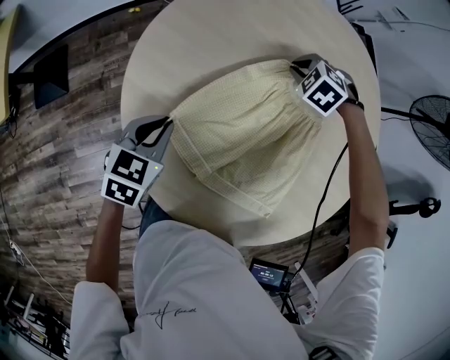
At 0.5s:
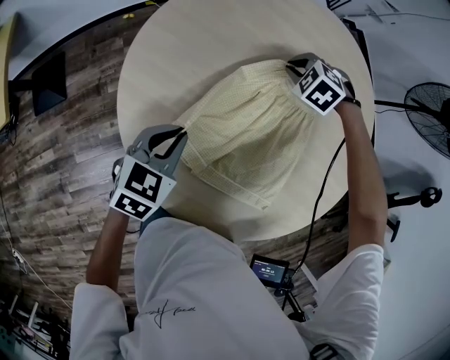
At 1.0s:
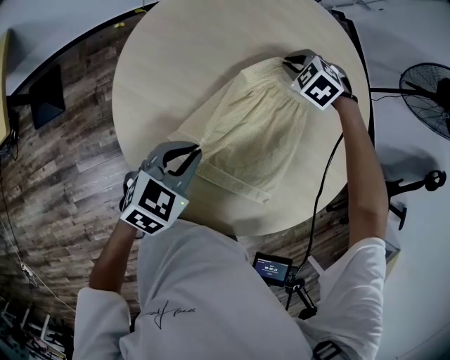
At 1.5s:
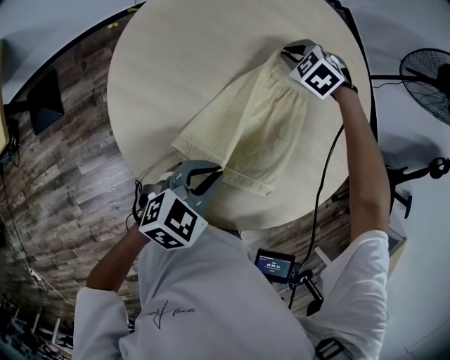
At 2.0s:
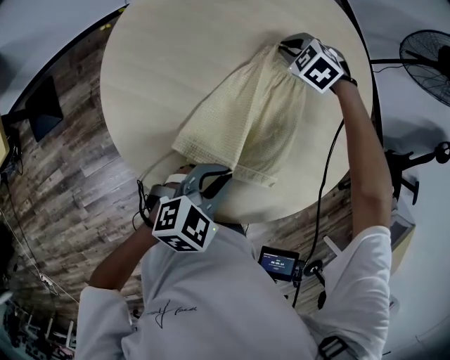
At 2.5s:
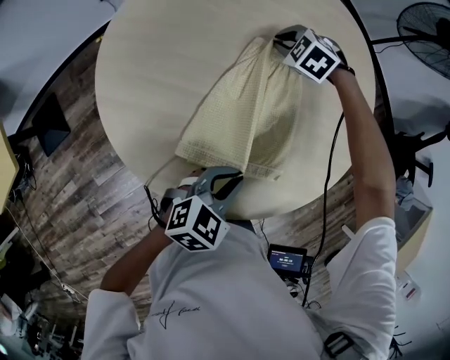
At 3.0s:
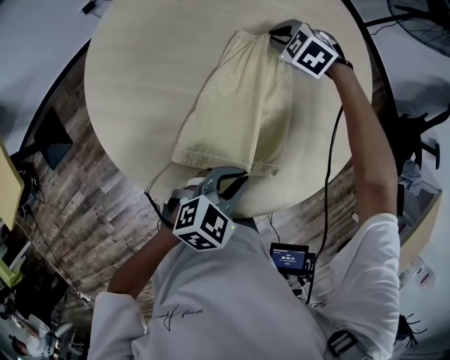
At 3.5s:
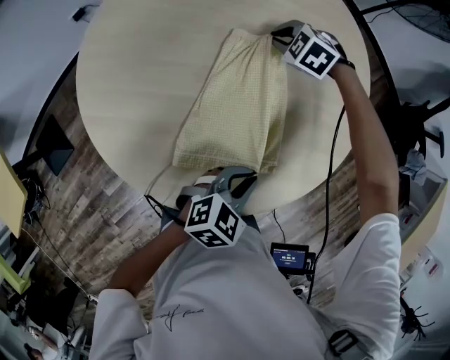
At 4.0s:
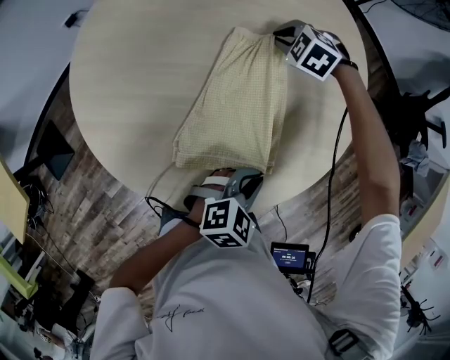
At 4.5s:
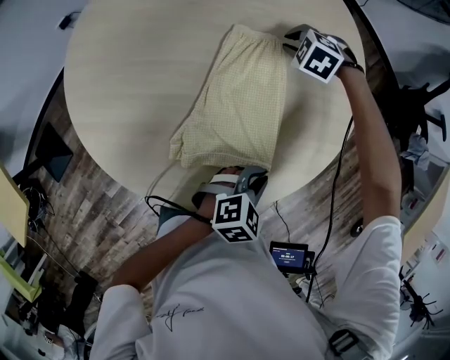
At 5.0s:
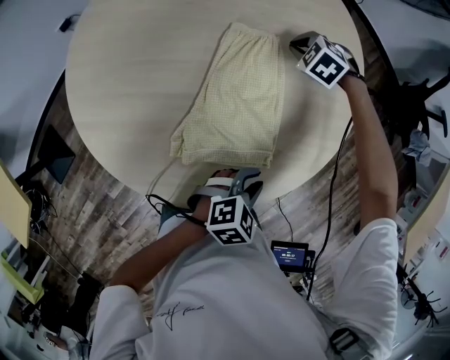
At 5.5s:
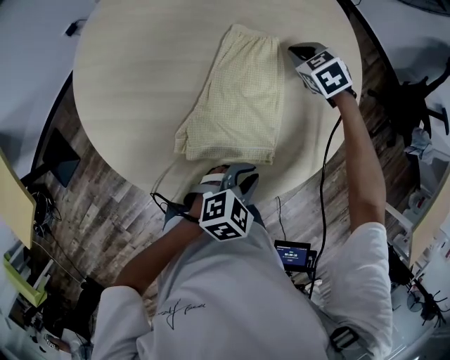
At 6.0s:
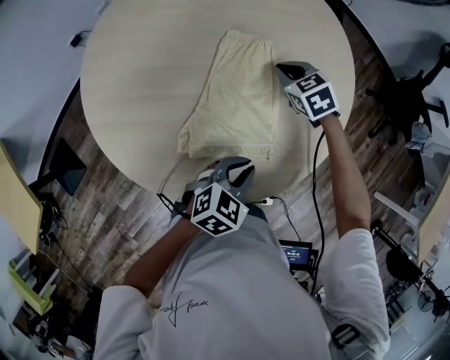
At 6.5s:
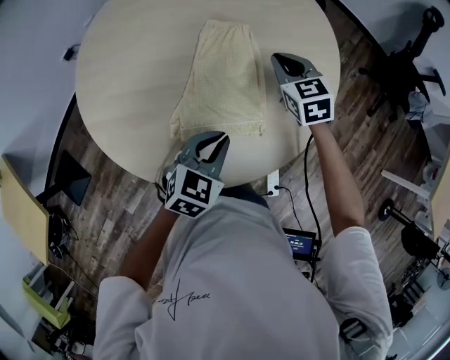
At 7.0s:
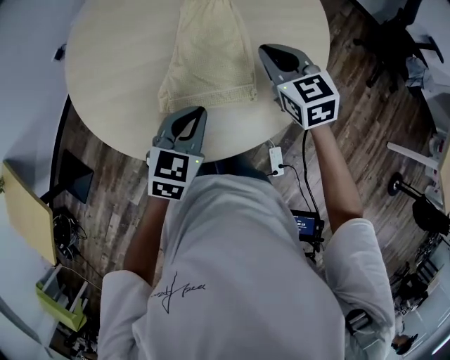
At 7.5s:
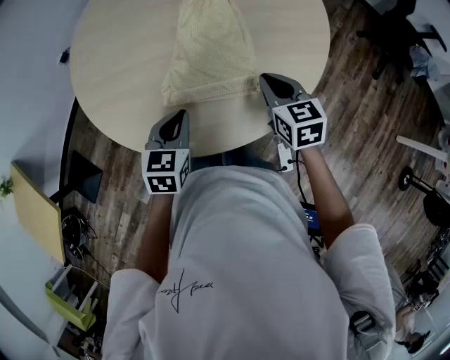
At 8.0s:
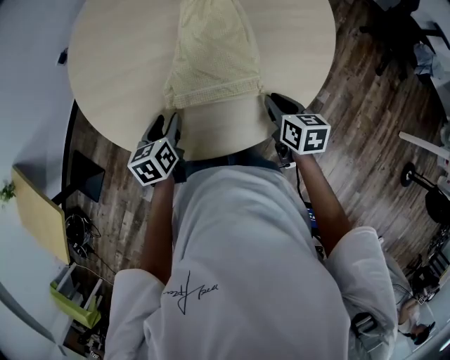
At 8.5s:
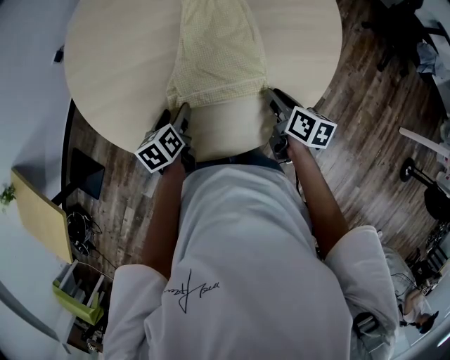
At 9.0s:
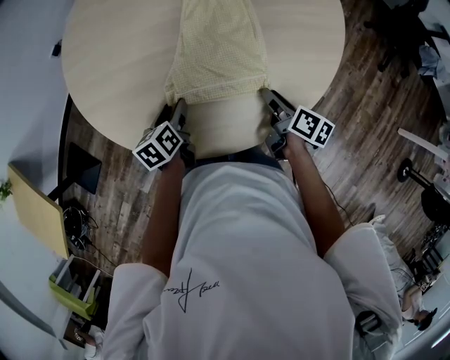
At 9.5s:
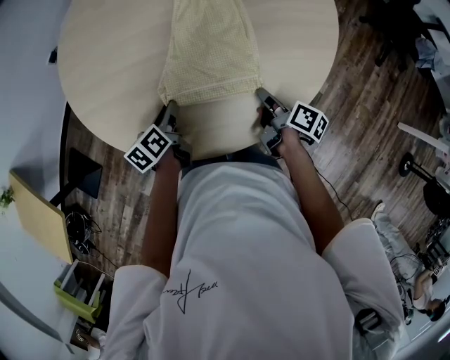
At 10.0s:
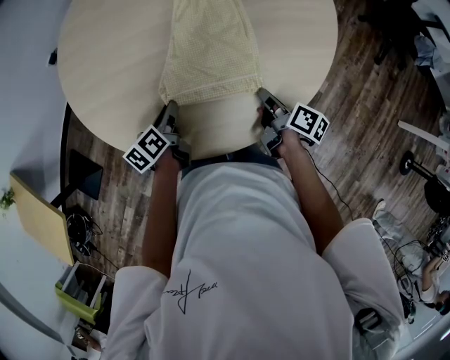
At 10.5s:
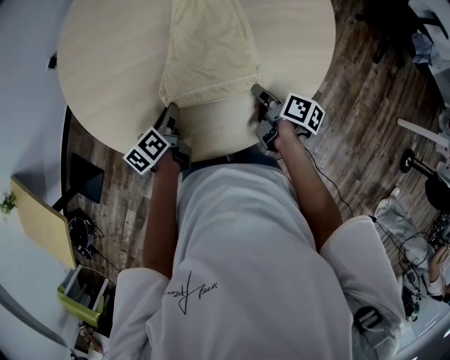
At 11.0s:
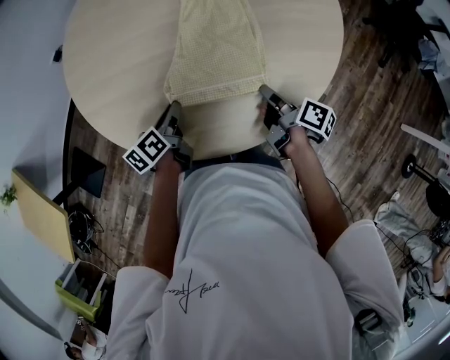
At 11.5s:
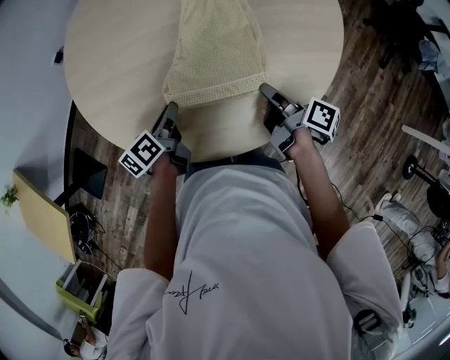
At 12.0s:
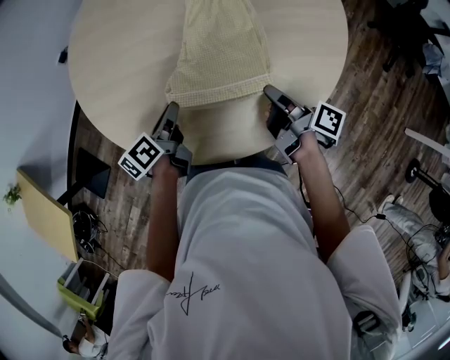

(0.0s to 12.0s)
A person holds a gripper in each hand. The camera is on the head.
0.0s - 2.0s: The left gripper shifts some 25 cm to the right and backward, and changes its angle by some 40 degrees; the right gripper travels to the right by about 10 cm.
2.0s - 4.0s: The two grippers go some 15 cm to the right. The left gripper turns by roughly 20 degrees.
4.0s - 6.0s: The right gripper travels backward and to the right by roughly 10 cm, and swivels some 40 degrees.
6.0s - 8.0s: The right gripper travels backward by some 30 cm, and twists roughly 50 degrees clockwise, seen from behind. Meanwhile the left gripper shifts some 20 cm to the left, twists some 40 degrees counterclockwise, seen from behind, and opens.
8.0s - 10.0s: The right gripper twists roughly 40 degrees clockwise, seen from behind, and opens and closes again; the left gripper shifts by about 5 cm, and swivels approximately 30 degrees.
10.0s - 12.0s: Both grippers move upward, roughly 5 cm.

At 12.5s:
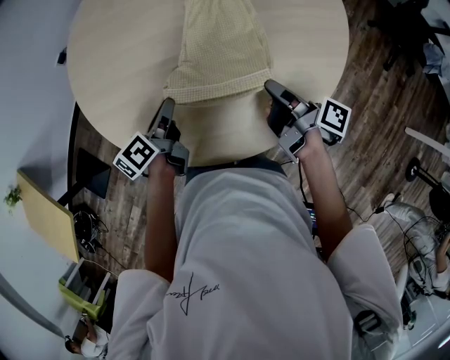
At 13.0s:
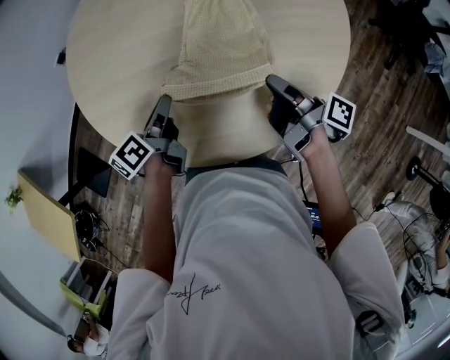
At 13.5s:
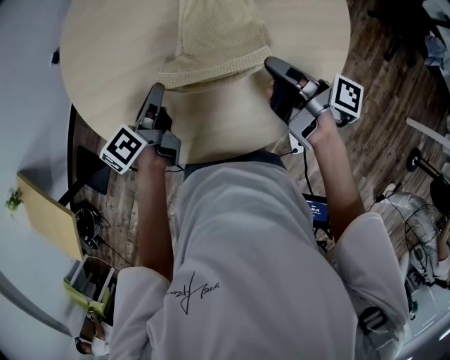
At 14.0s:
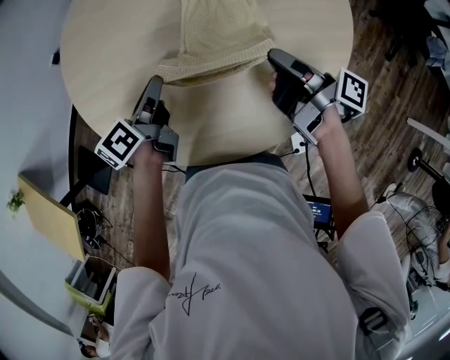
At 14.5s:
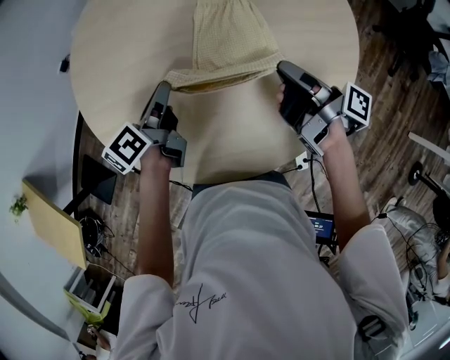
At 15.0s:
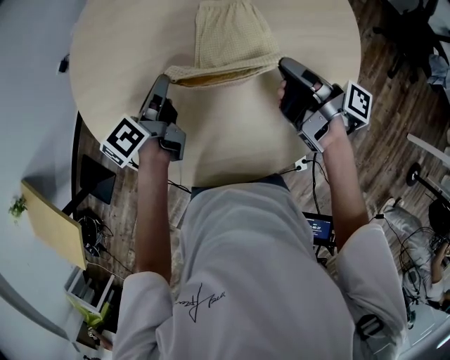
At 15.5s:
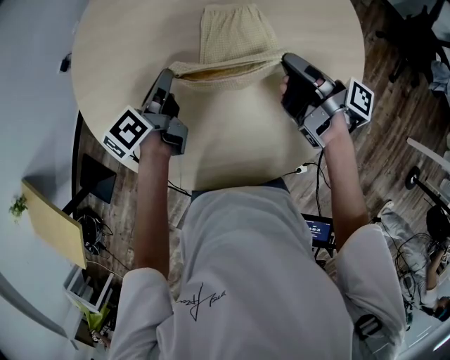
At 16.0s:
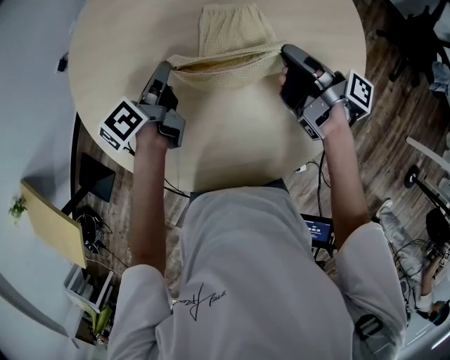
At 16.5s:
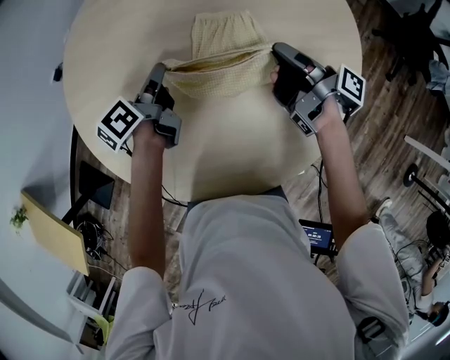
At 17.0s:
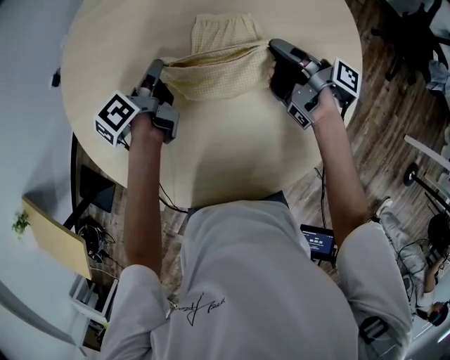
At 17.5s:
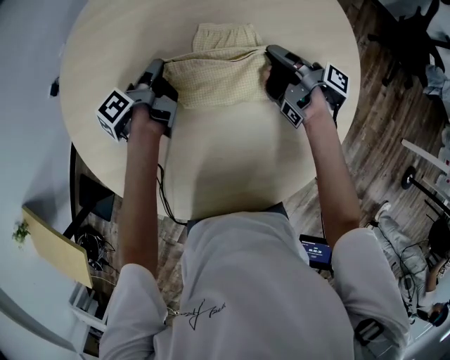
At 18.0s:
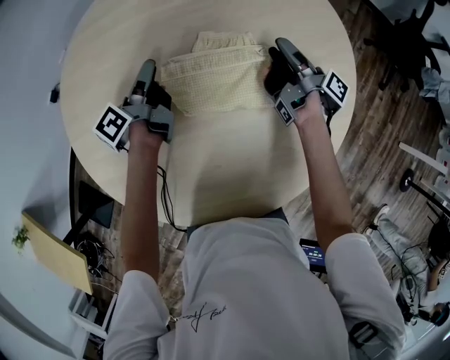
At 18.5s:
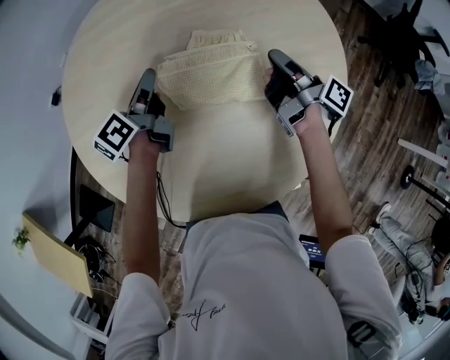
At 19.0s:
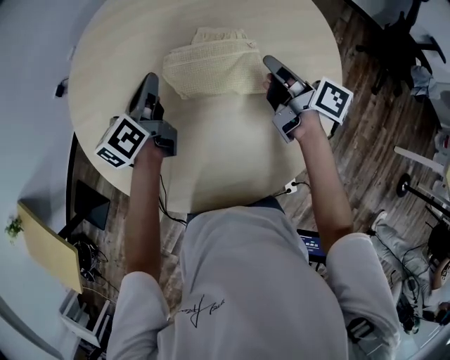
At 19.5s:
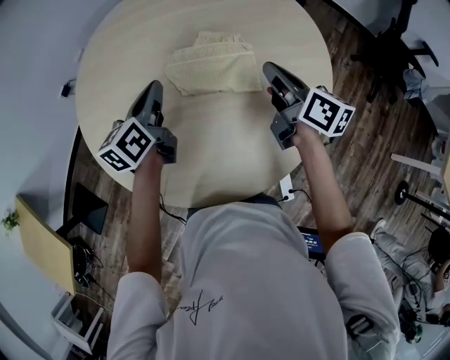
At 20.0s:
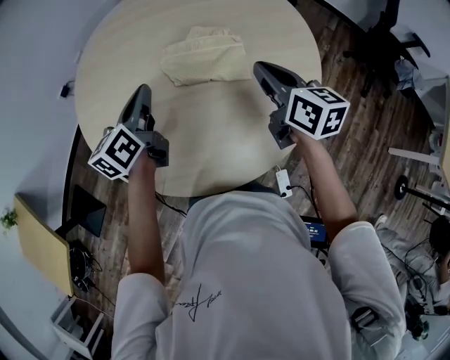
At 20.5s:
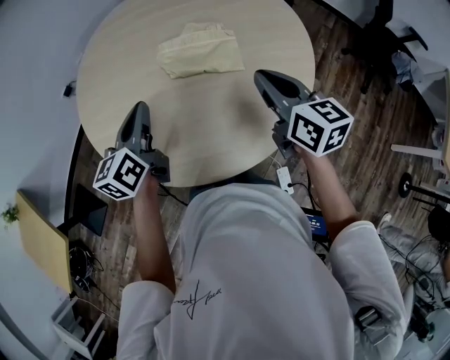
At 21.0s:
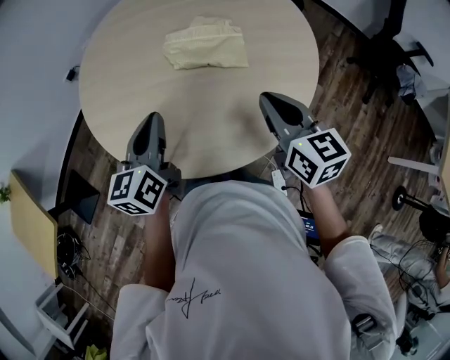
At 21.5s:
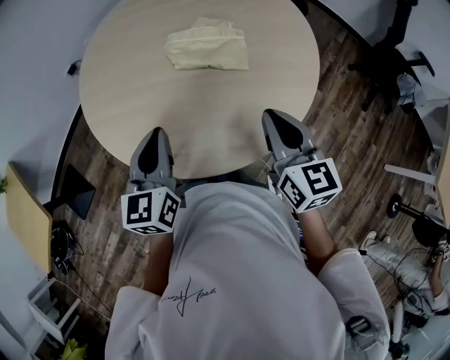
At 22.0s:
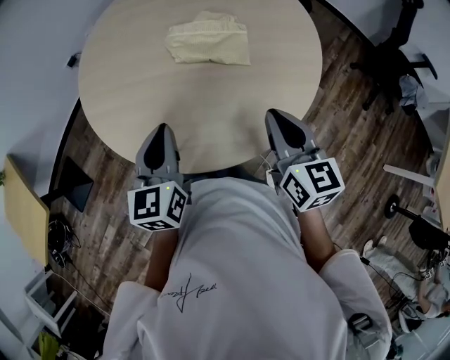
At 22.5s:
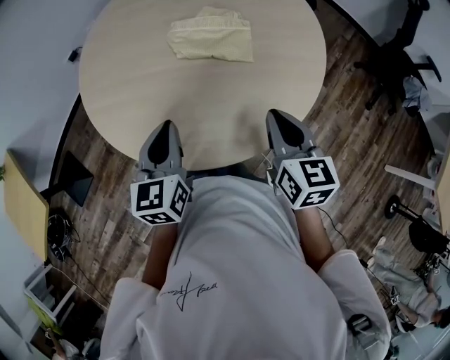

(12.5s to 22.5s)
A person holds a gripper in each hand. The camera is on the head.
12.5s - 14.5s: The two grippers go some 10 cm forward.
14.5s - 16.5s: Both grippers move forward, approximately 10 cm.
16.5s - 18.5s: The right gripper opens, then closes again; the left gripper shifts by some 5 cm.
18.5s - 20.5s: Both grippers travel together backward and upward, some 25 cm. The right gripper twists about 70 degrees counterclockwise, seen from behind. Meanwhile the left gripper rotates roughly 30 degrees.
20.5s - 22.5s: The right gripper shifts some 10 cm backward. Meanwhile the left gripper is displaced backward and to the right by about 10 cm.

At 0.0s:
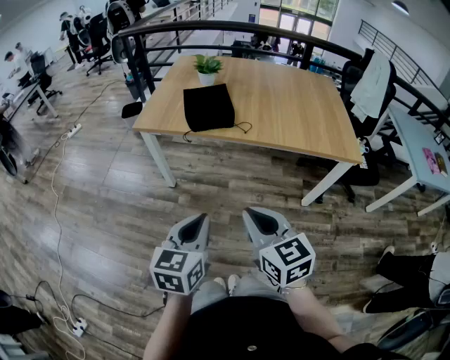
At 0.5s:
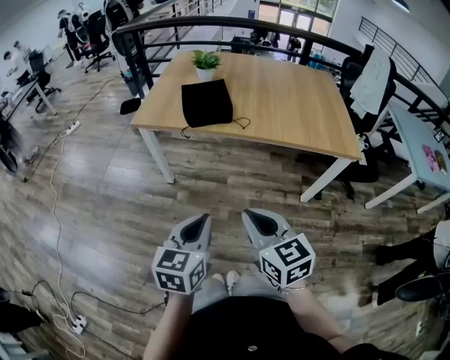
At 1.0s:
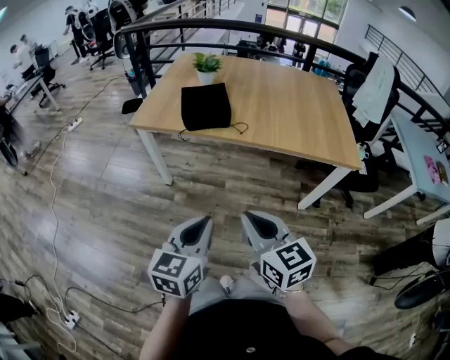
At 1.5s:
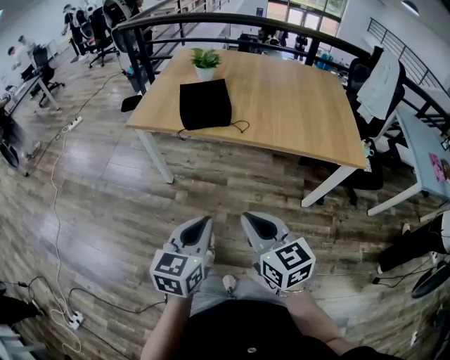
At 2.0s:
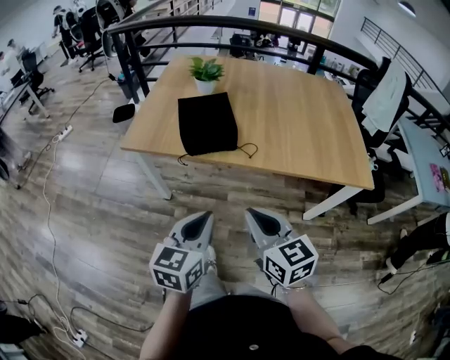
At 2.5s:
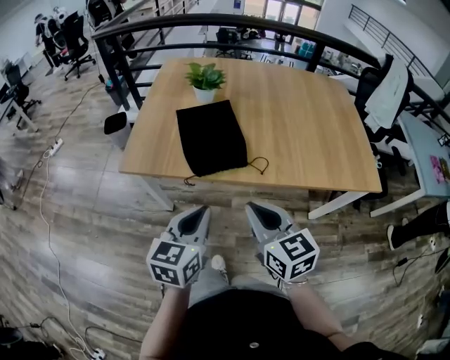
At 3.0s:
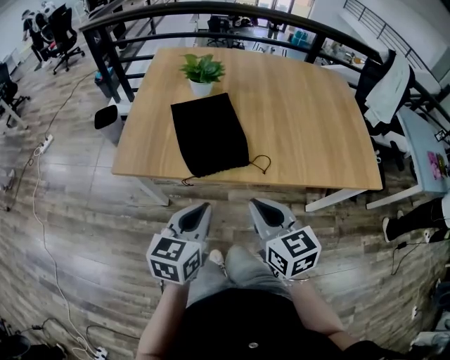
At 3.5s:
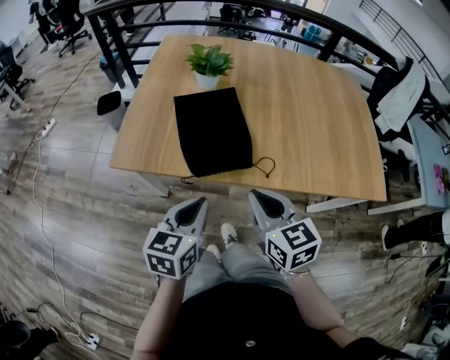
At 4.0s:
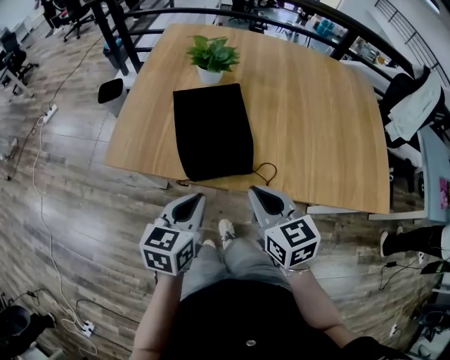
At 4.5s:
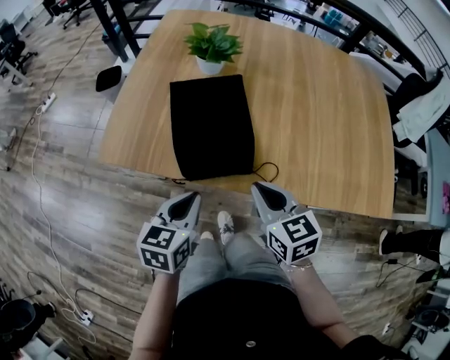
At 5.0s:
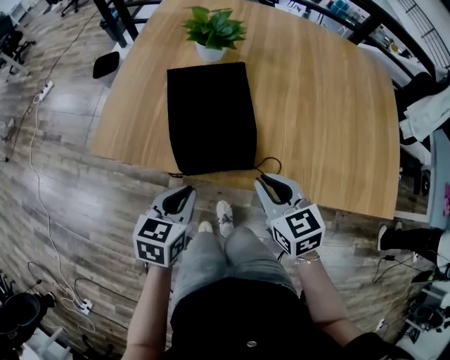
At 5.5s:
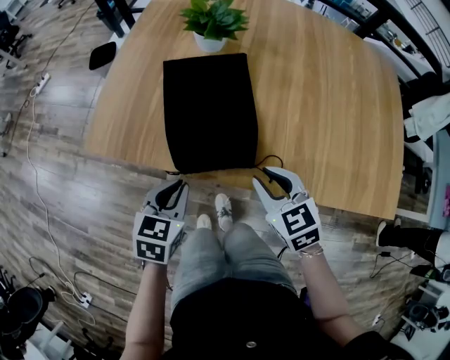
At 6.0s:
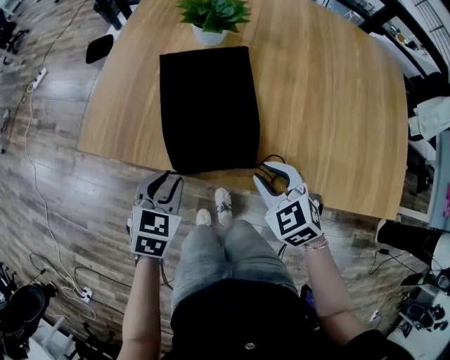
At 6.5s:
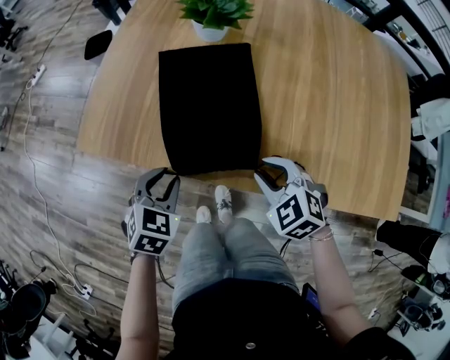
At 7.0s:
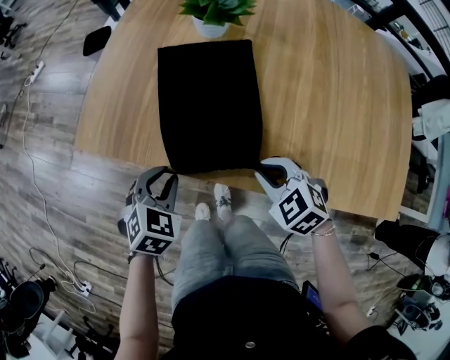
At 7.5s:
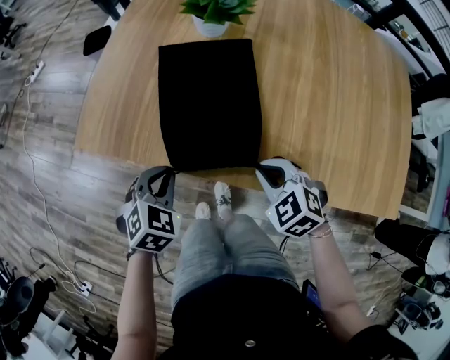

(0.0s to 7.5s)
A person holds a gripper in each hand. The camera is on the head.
0.0s - 2.0s: The grippers both shift forward by approximately 20 cm.
2.0s - 4.0s: The grippers both shift forward by approximately 25 cm.
4.0s - 5.5s: The right gripper travels downward and forward by about 10 cm, rotates approximately 20 degrees, and opens its fingers. Meanwhile the left gripper heads downward, covering about 10 cm.
5.5s - 7.5s: The right gripper heads downward, covering some 5 cm, turns by approximately 30 degrees, and closes up; the left gripper changes place by some 5 cm, and swivels roughly 30 degrees.
